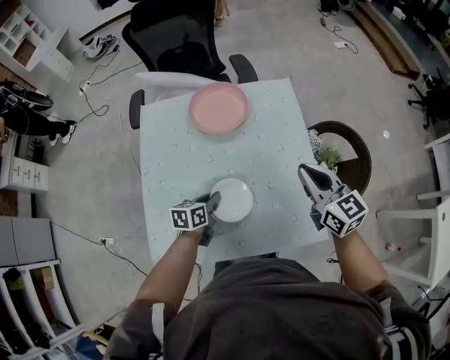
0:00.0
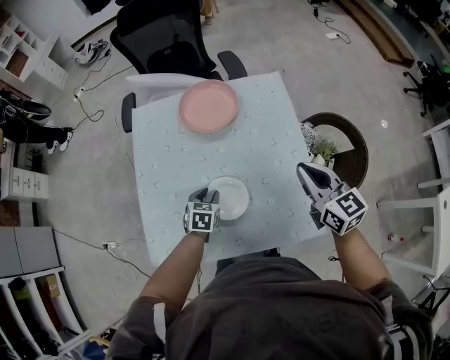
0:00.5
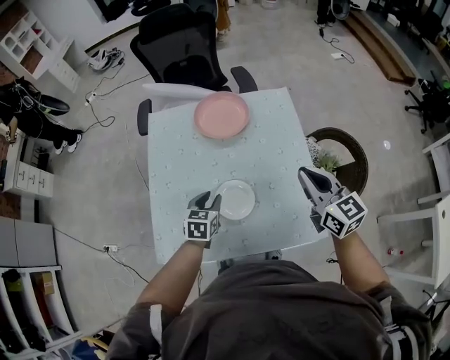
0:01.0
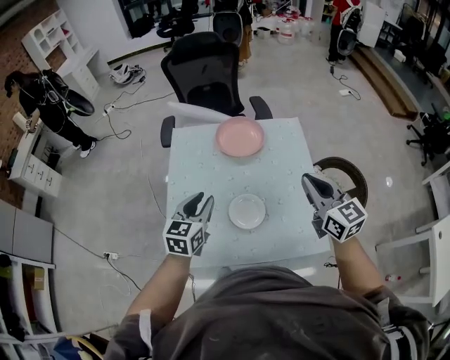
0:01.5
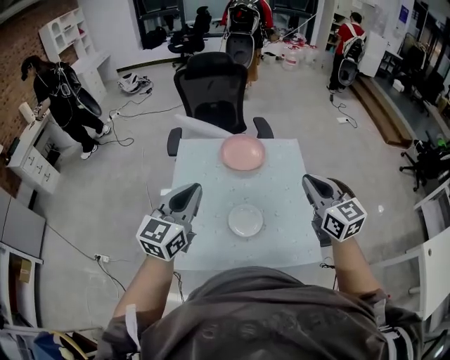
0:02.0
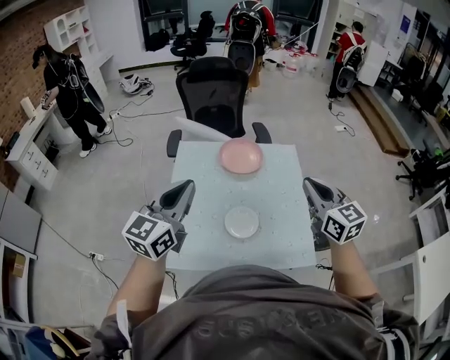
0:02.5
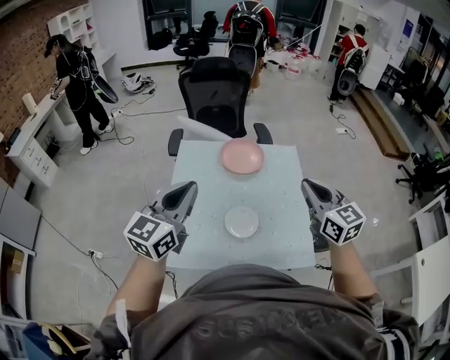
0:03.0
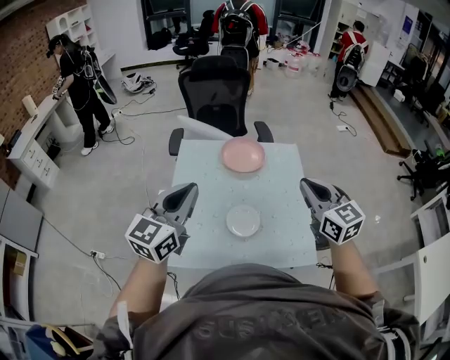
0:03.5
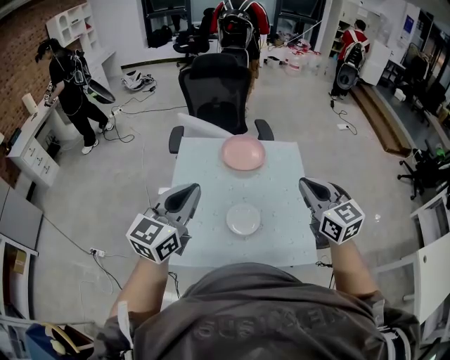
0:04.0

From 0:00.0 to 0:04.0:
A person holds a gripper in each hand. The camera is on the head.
From 0:00.0 to 0:02.0: The left gripper heads upward, covering some 35 cm, tilts its fingers some 40 degrees upward, and opens, then closes once more; the right gripper is displaced upward and backward by roughly 15 cm.
From 0:02.0 to 0:04.0: There are only small adjustments of the grippers.

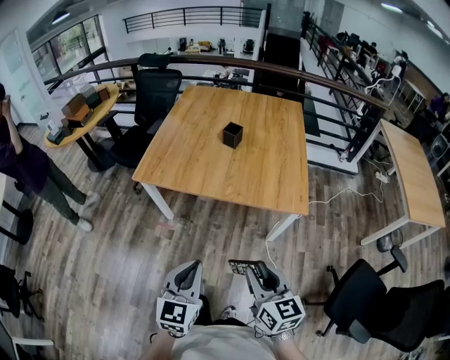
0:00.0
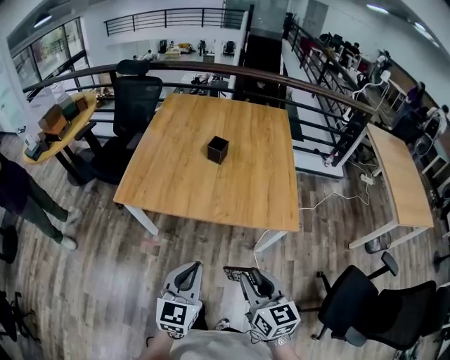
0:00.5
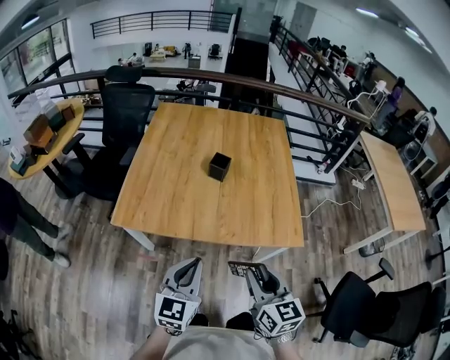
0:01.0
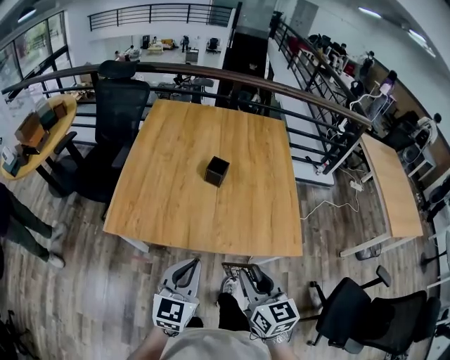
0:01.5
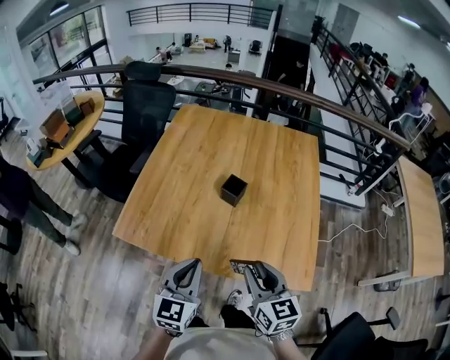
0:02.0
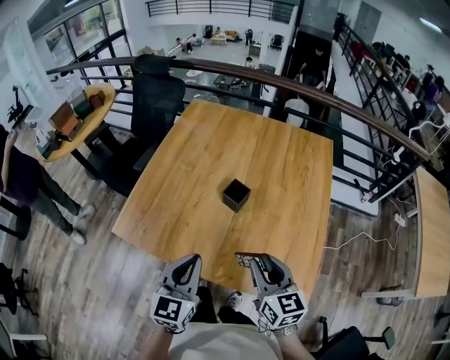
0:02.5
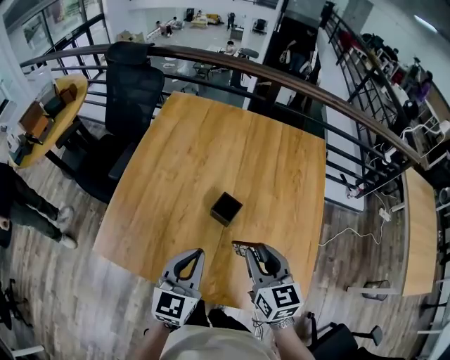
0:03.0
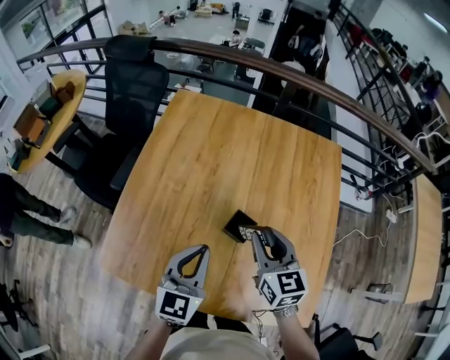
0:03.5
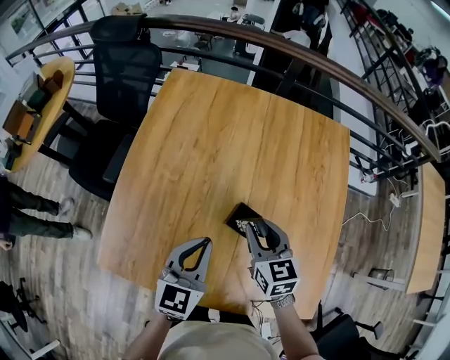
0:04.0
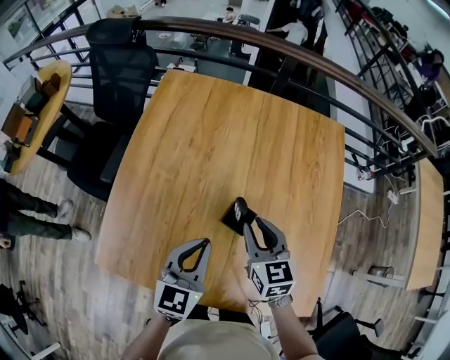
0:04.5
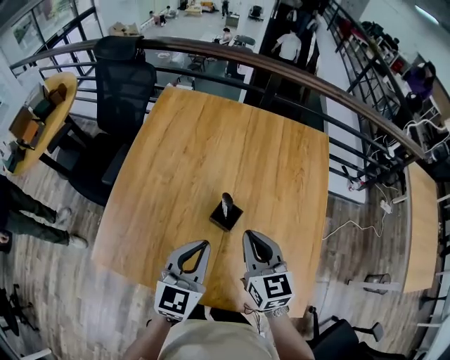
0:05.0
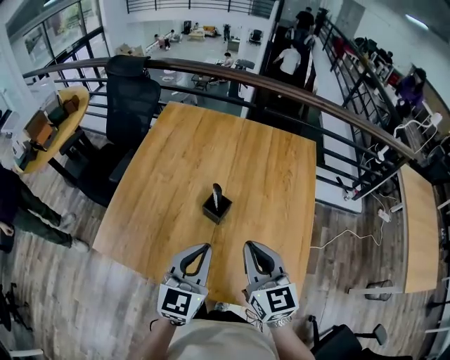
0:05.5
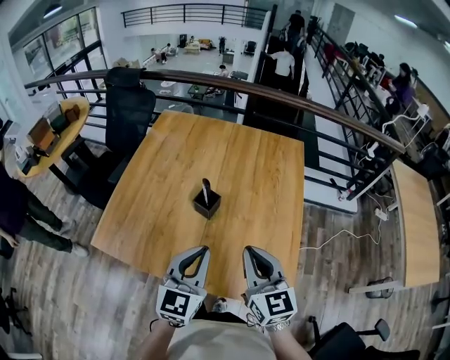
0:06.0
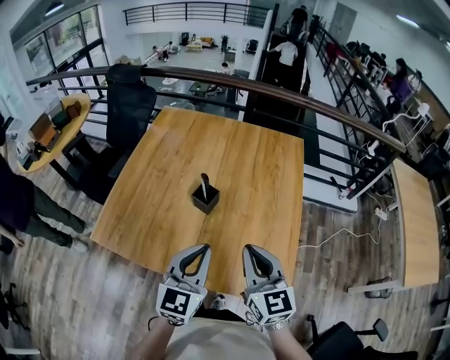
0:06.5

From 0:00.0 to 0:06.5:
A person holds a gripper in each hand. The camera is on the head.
From 0:00.0 to 0:02.0: The pair of grippers is taken forward, about 50 cm.
From 0:02.0 to 0:04.5: The two grippers go some 40 cm forward.
From 0:04.5 to 0:06.5: The left gripper moves backward, to the right and upward, approximately 35 cm. The right gripper shifts roughly 40 cm backward, upward and to the right, and closes.

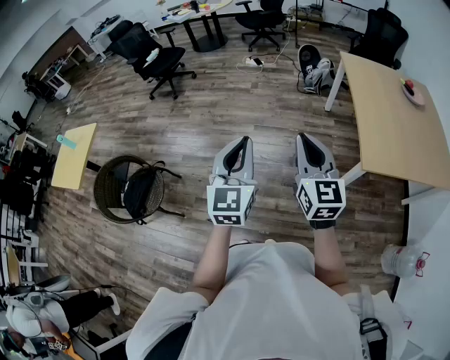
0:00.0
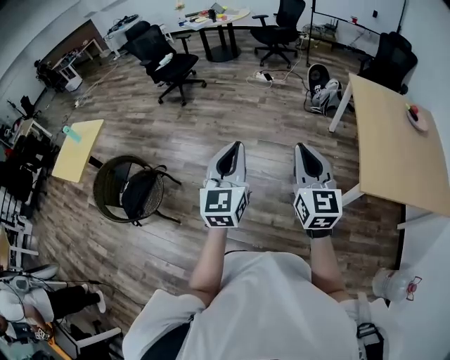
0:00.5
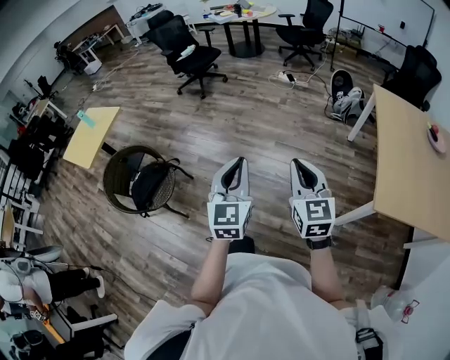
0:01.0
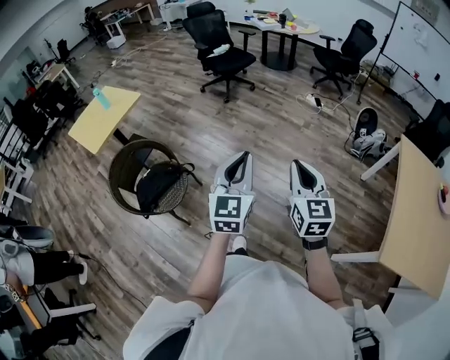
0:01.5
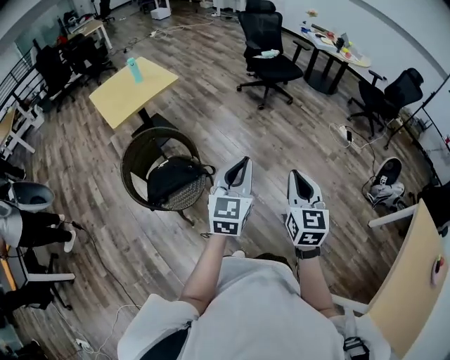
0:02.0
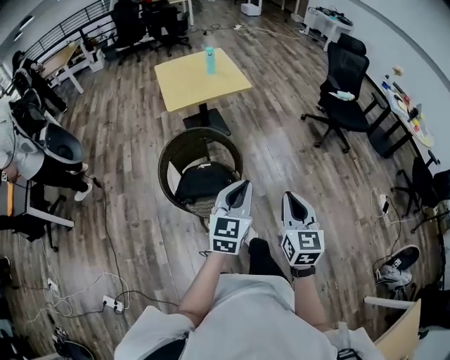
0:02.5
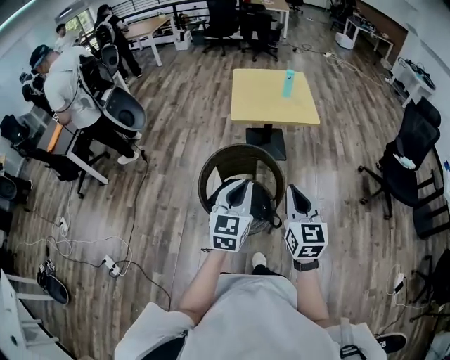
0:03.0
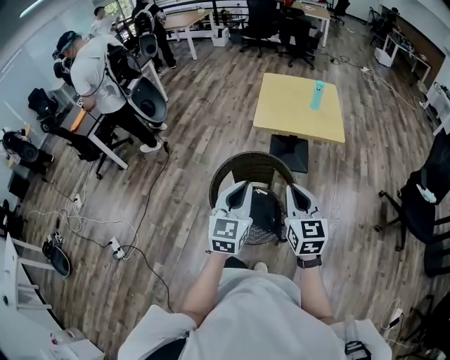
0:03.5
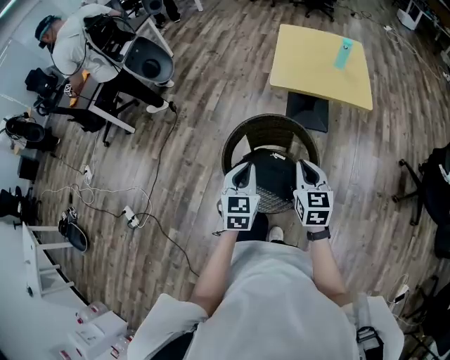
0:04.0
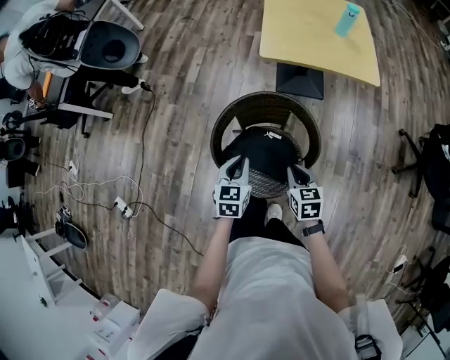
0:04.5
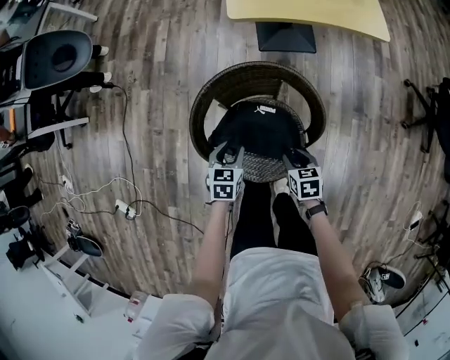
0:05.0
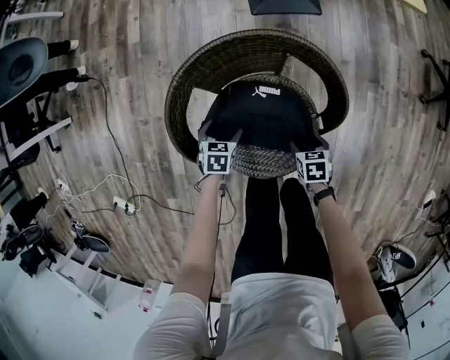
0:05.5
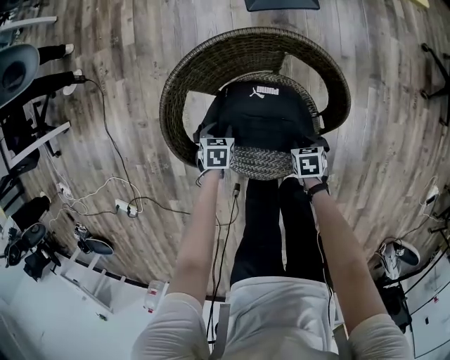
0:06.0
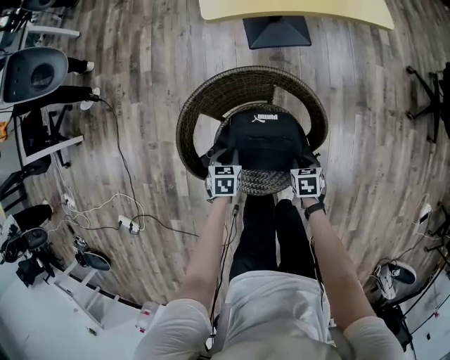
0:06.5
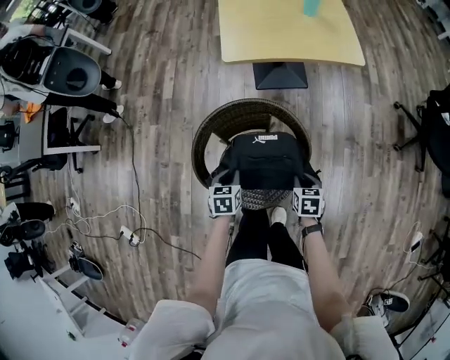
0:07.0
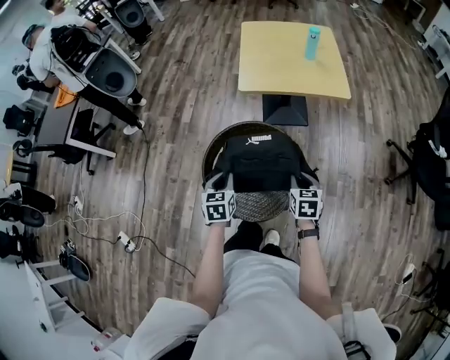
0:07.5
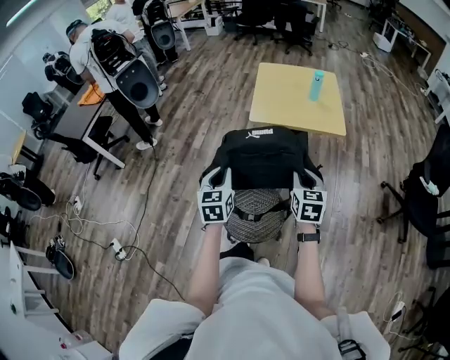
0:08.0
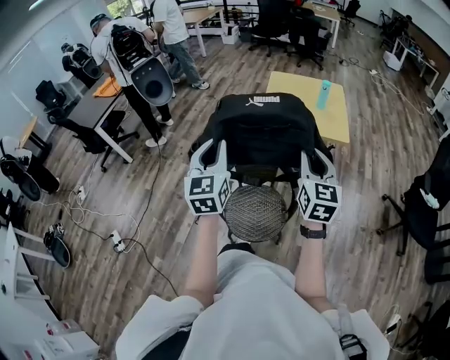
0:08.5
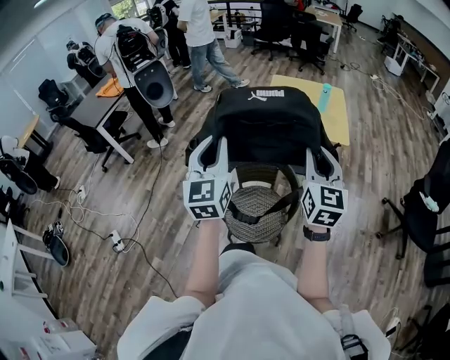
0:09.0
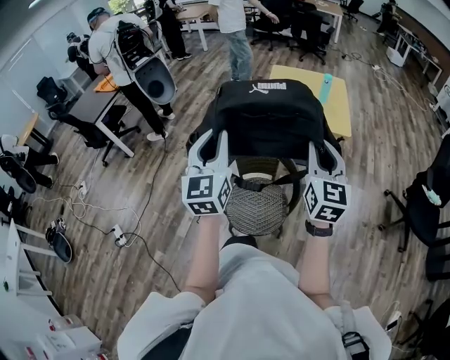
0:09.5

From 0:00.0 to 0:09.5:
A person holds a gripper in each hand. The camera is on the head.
From 0:00.0 to 0:02.0: The pair of grippers is taken roughly 50 cm. The right gripper swivels roughly 30 degrees. Meanwhile the left gripper changes its angle by approximately 30 degrees.
From 0:02.0 to 0:04.0: The pair of grippers is taken roughly 50 cm. The right gripper turns by about 70 degrees. The left gripper rotates some 70 degrees.
From 0:04.0 to 0:05.5: Both grippers move downward, about 50 cm. The left gripper angles its fingers downward, by about 40 degrees, and opens up; the right gripper tilts its fingers approximately 50 degrees downward, and opens.
From 0:05.5 to 0:07.5: Both grippers move upward, roughly 40 cm. The right gripper turns by some 30 degrees, and closes its fingers, while the left gripper turns by approximately 30 degrees, and closes its fingers.
From 0:07.5 to 0:09.5: The grippers both shift upward by about 35 cm. The left gripper tilts its fingers about 50 degrees upward; the right gripper tips its fingers upward by about 40 degrees.

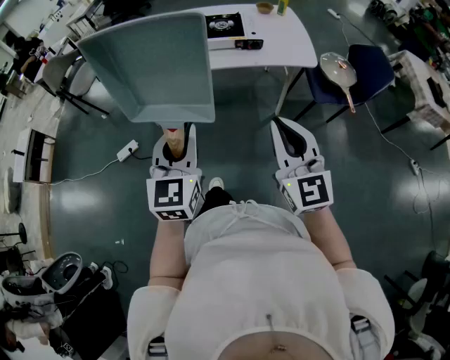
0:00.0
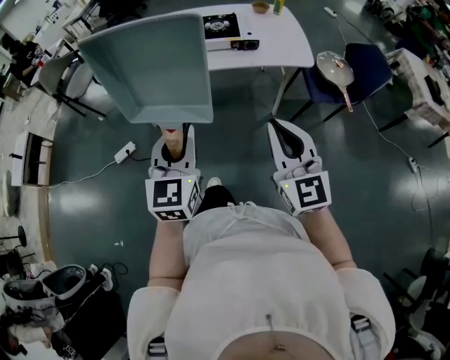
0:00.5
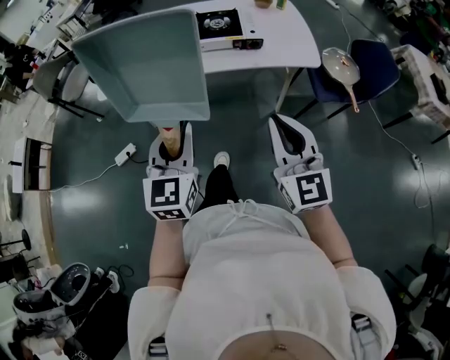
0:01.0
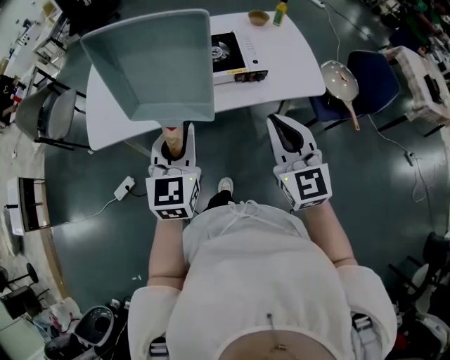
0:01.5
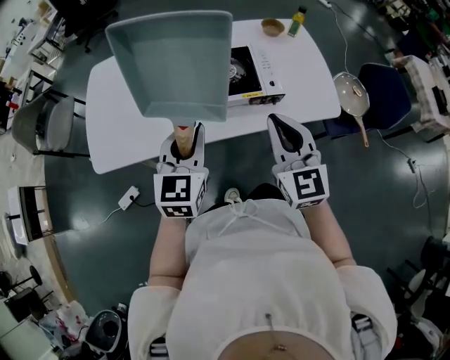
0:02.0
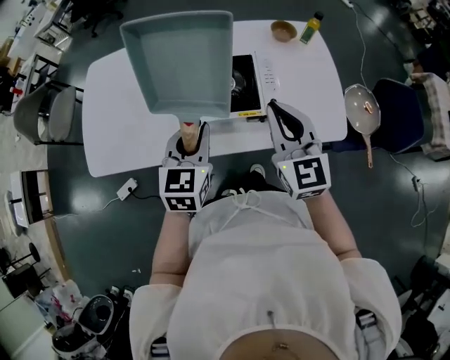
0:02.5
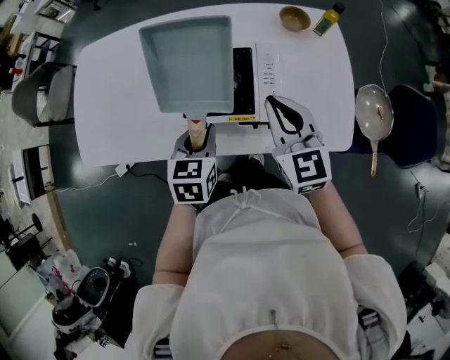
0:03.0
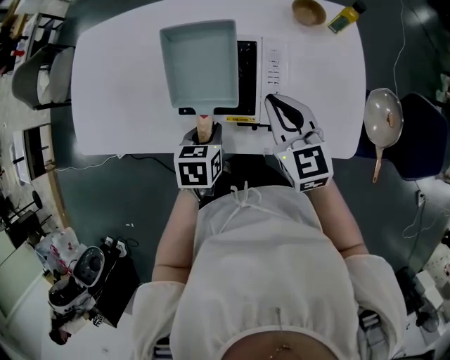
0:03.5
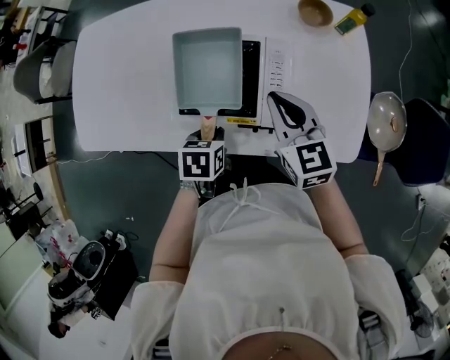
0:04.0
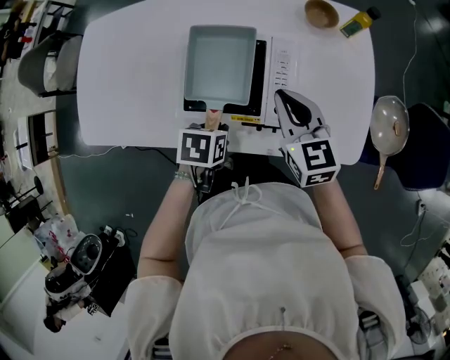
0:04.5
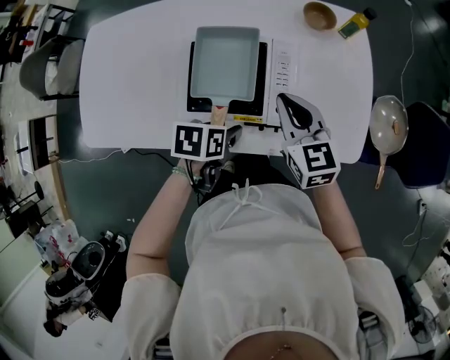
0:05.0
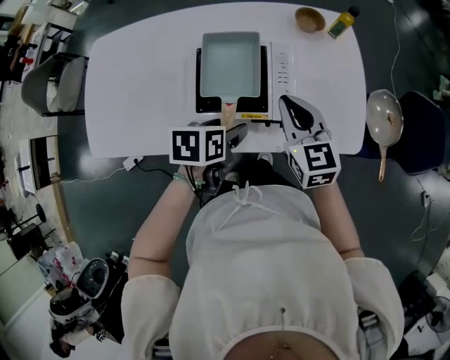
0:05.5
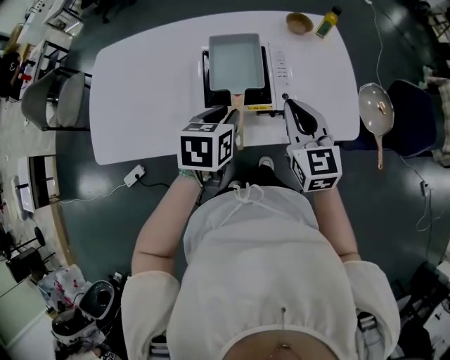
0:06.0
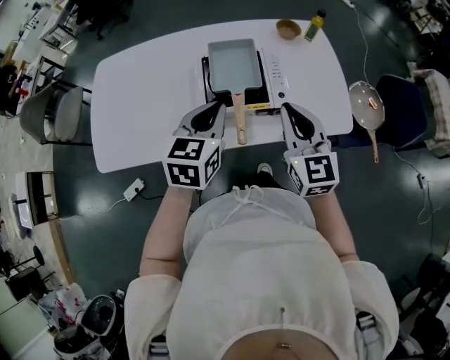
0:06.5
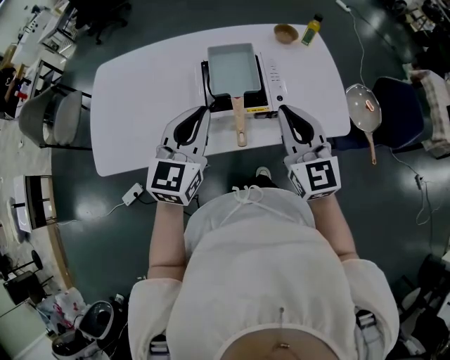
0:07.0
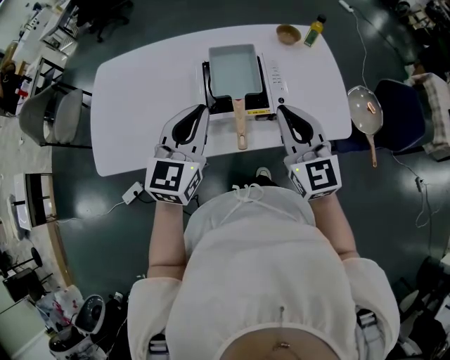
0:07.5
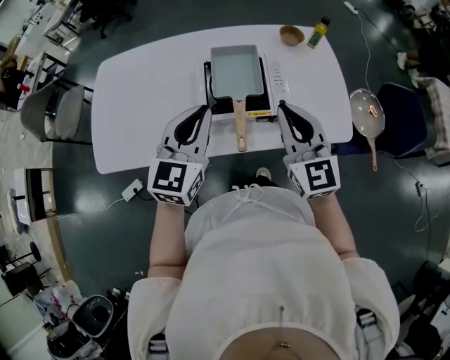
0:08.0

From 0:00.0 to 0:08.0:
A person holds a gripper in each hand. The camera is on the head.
From 0:00.0 to 0:02.0: The two grippers travel together, forward, roughly 40 cm.
From 0:02.0 to 0:04.0: The left gripper moves downward, to the right and forward, about 30 cm, and angles its fingers downward, by approximately 50 degrees. The right gripper heads forward, downward and to the right, covering about 30 cm, and swivels approximately 30 degrees.
From 0:04.0 to 0:06.0: The right gripper goes about 15 cm backward and upward, while the left gripper moves upward, approximately 15 cm, swivels approximately 20 degrees, and opens, then closes once more.
From 0:06.0 to 0:08.0: The right gripper moves upward, some 5 cm. Meanwhile the left gripper travels upward and to the left by some 15 cm, and angles its fingers upward, by approximately 40 degrees.
